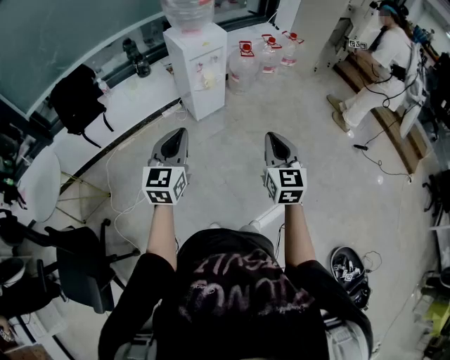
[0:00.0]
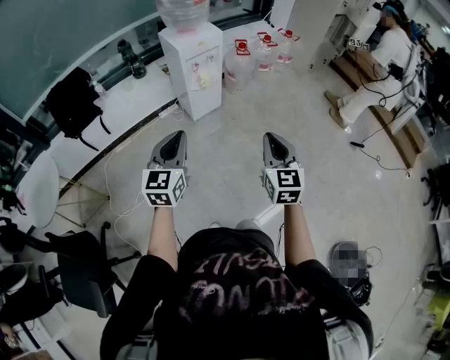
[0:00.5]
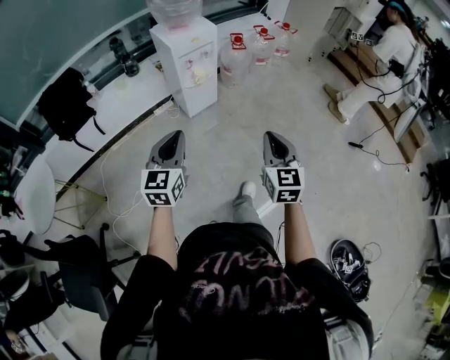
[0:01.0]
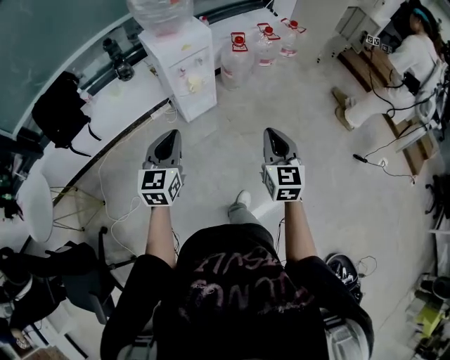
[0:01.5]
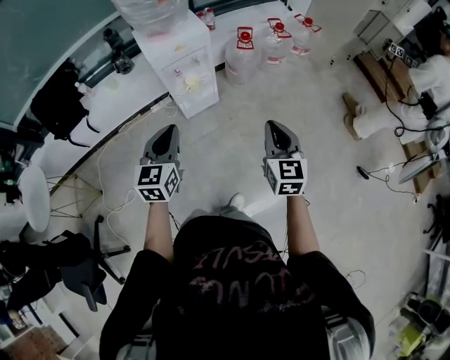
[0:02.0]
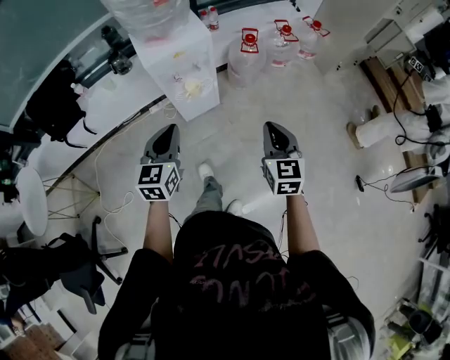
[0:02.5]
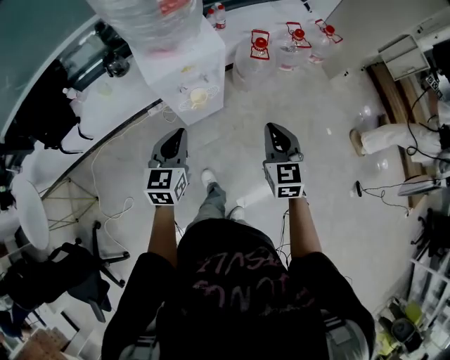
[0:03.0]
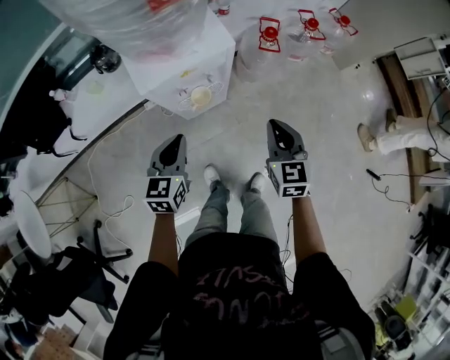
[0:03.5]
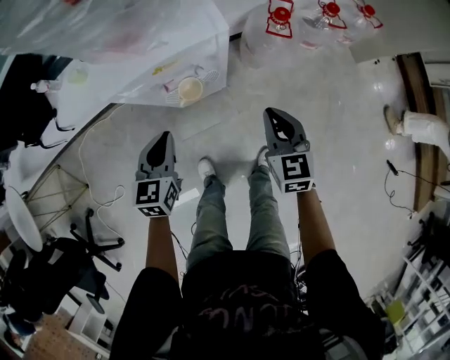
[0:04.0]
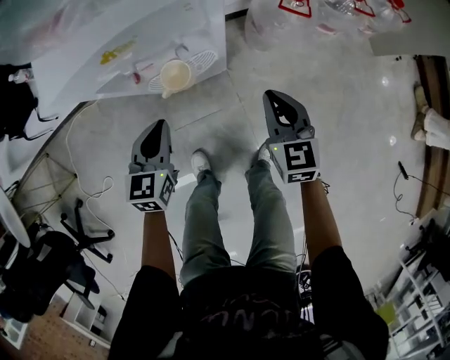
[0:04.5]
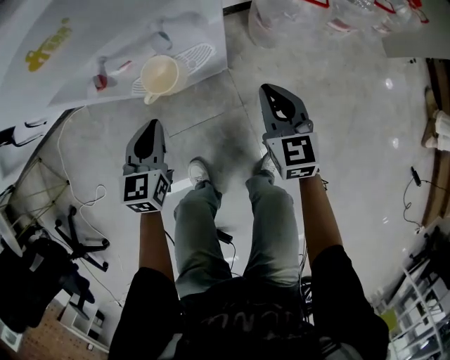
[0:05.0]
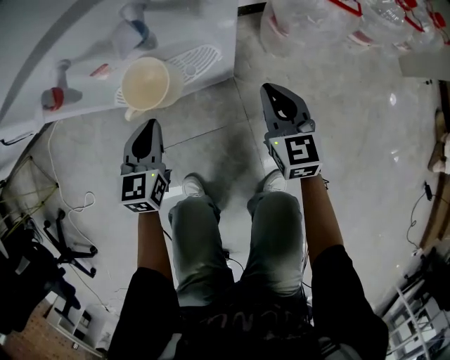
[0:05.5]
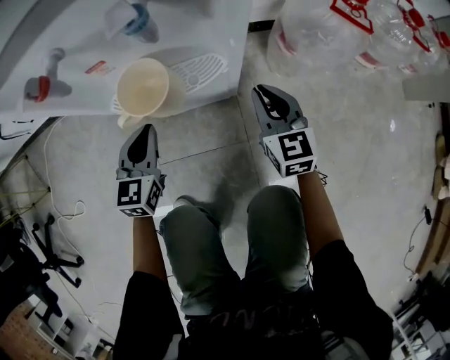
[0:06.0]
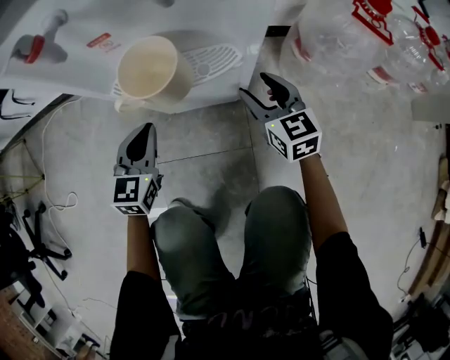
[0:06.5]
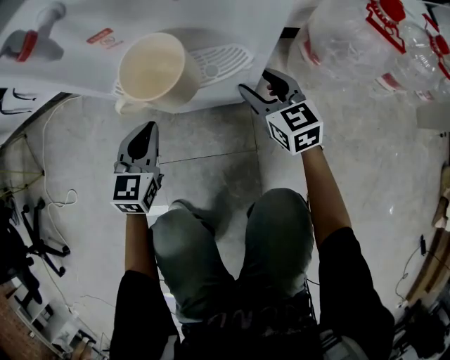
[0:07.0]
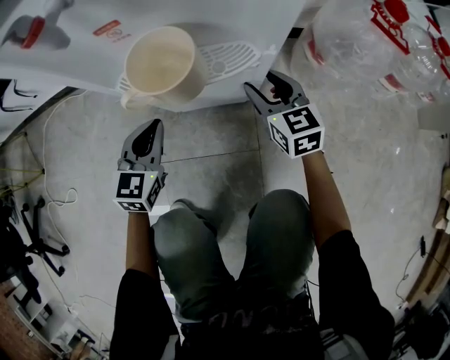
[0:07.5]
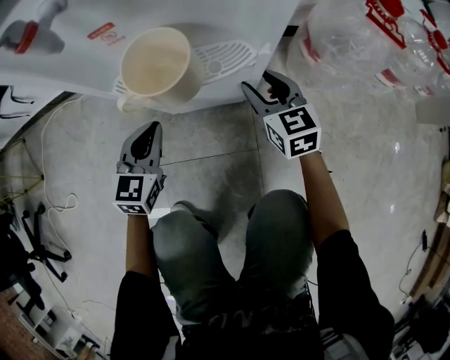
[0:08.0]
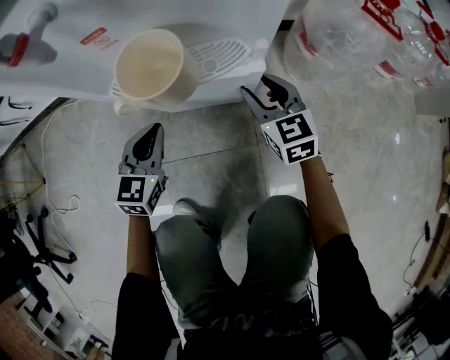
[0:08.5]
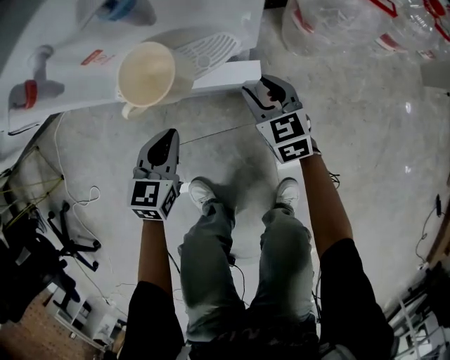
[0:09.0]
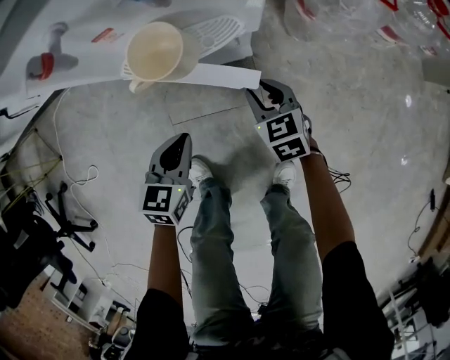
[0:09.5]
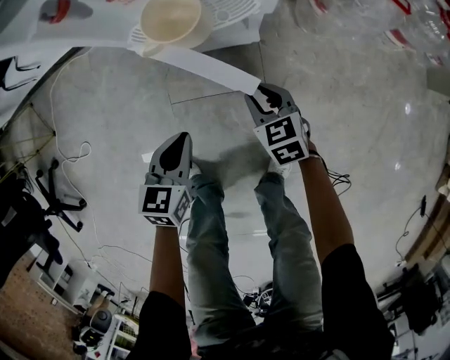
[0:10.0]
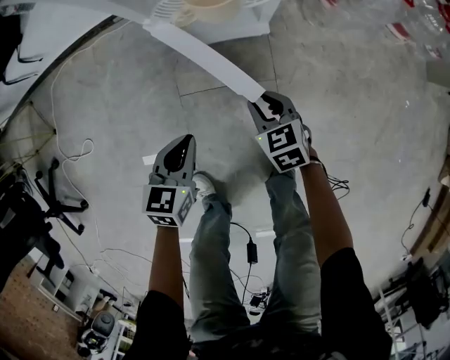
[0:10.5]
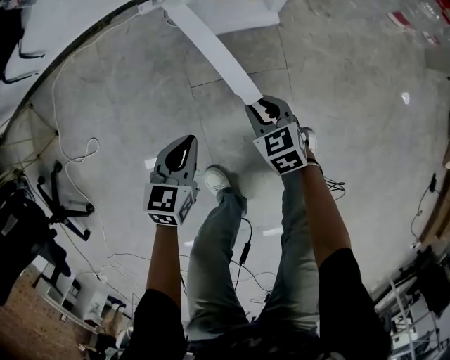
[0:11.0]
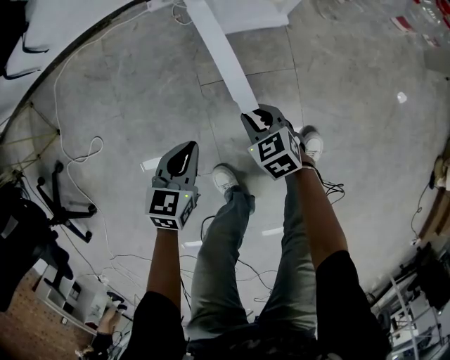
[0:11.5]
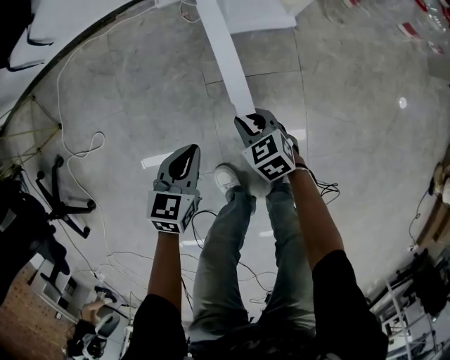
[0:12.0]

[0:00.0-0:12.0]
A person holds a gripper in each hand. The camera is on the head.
0:00.0 to 0:02.0: The grippers both shift forward by about 30 cm.
0:02.0 to 0:04.0: The two grippers go roughly 40 cm forward and downward. The right gripper swivels about 20 degrees.
0:04.0 to 0:06.0: Both grippers move downward, roughly 40 cm.
0:06.0 to 0:08.0: Both grippers move downward, approximately 5 cm. The right gripper opens up.
0:08.0 to 0:10.0: The right gripper goes approximately 15 cm backward, turns by about 20 degrees, and closes up. Meanwhile the left gripper goes approximately 20 cm backward and upward, and turns by approximately 20 degrees.
0:10.0 to 0:12.0: The grippers both shift to the left and backward by some 25 cm.

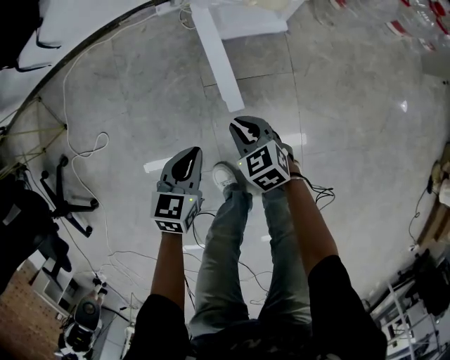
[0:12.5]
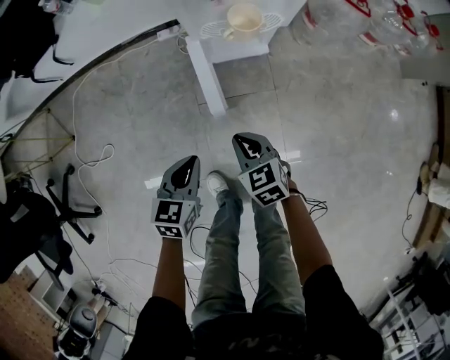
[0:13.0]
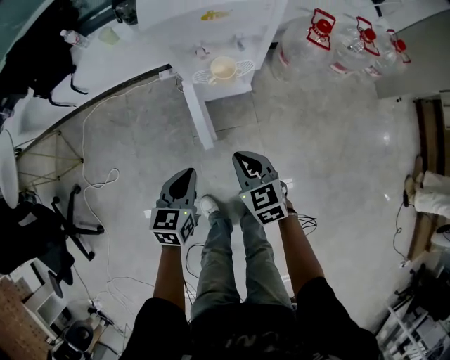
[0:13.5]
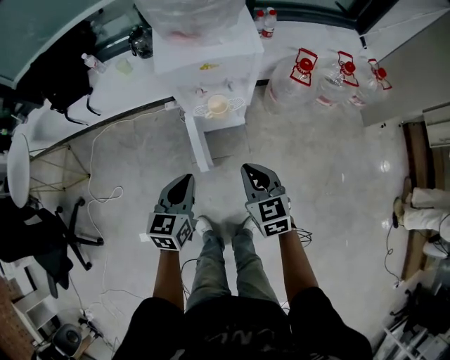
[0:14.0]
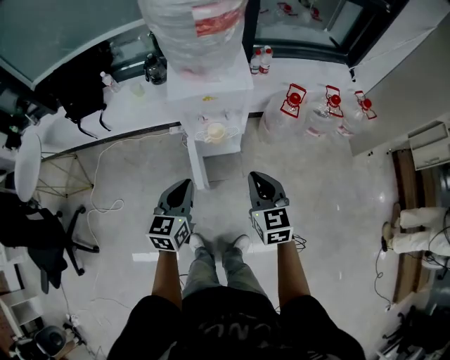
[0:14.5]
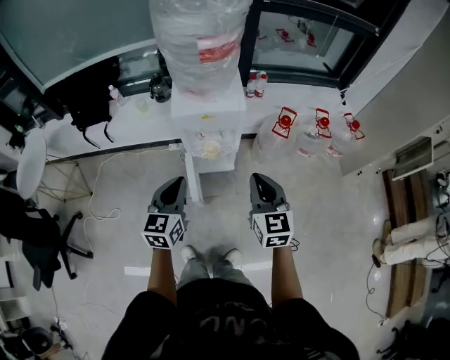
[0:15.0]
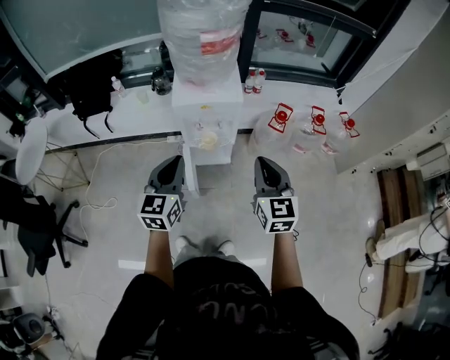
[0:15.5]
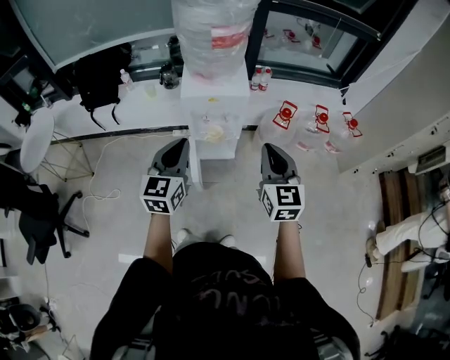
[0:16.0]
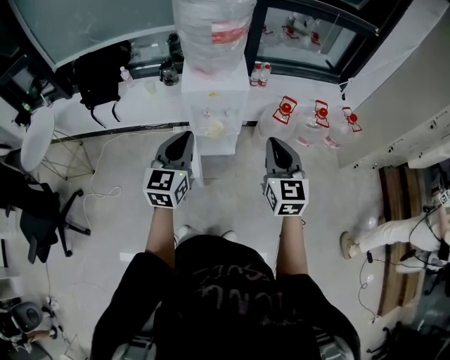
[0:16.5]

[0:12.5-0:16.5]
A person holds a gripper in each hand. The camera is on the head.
0:12.5 to 0:14.5: The right gripper goes roughly 60 cm upward and to the right, and changes its angle by roughly 30 degrees. The left gripper shifts some 50 cm upward, and swivels some 20 degrees.
0:14.5 to 0:16.5: The two grippers go about 20 cm upward.

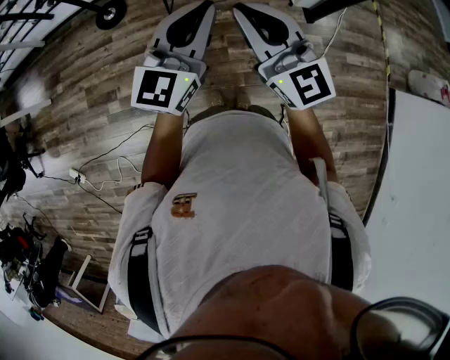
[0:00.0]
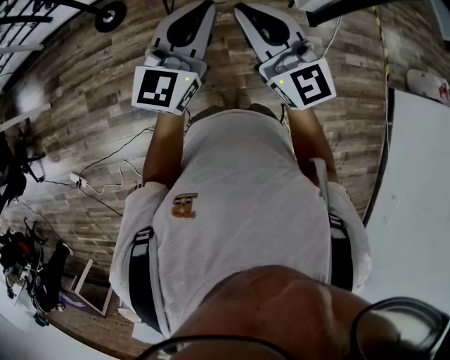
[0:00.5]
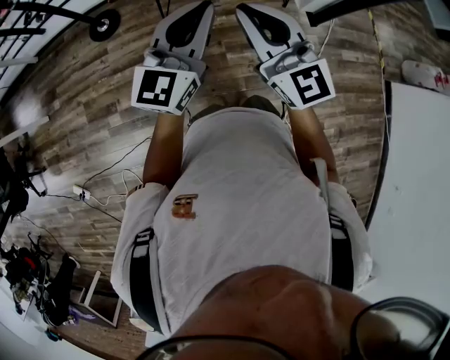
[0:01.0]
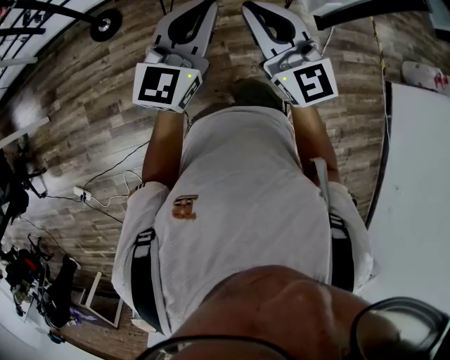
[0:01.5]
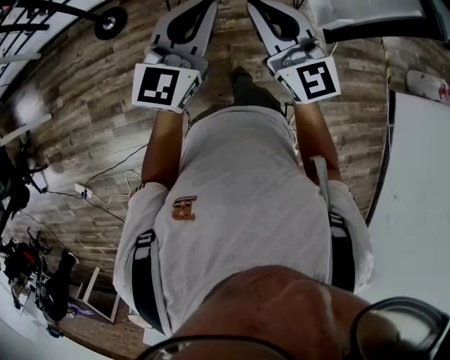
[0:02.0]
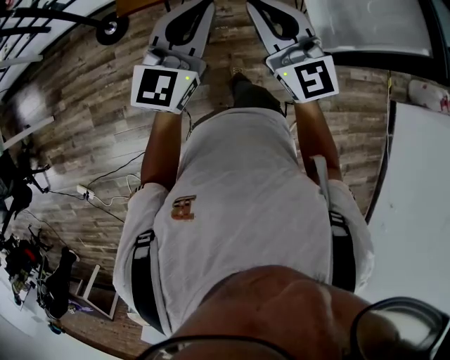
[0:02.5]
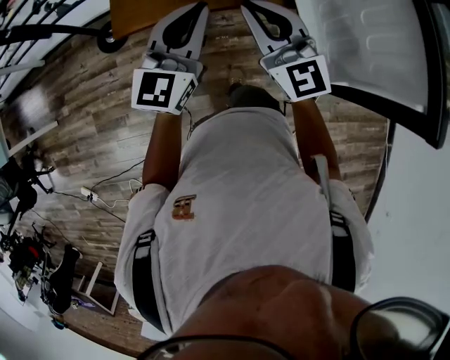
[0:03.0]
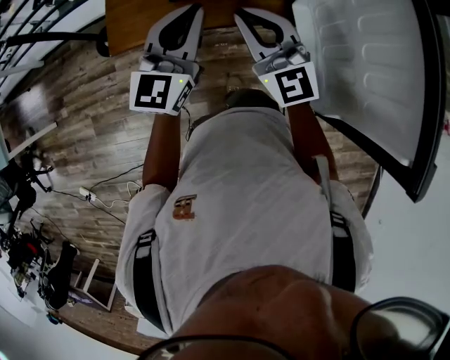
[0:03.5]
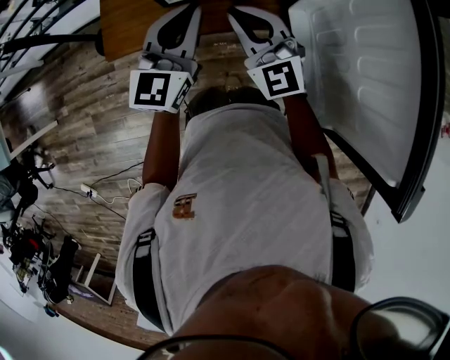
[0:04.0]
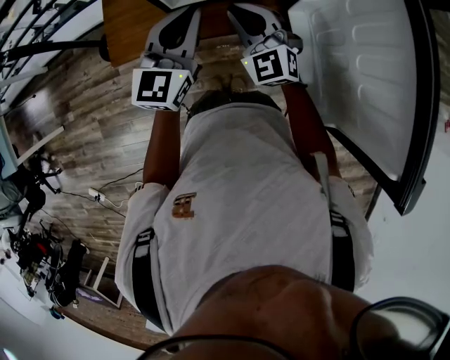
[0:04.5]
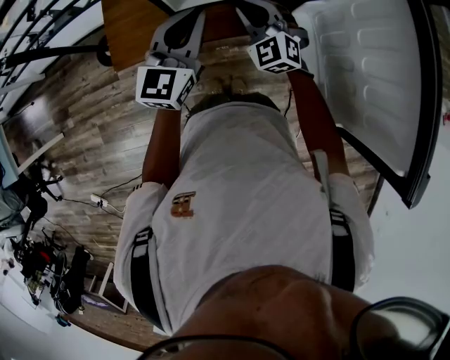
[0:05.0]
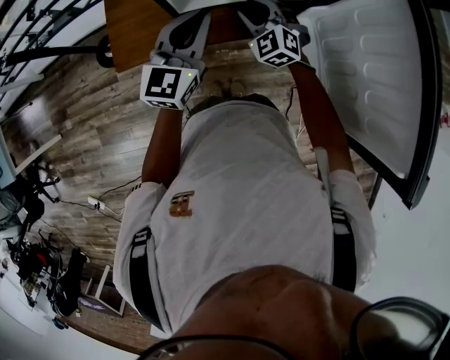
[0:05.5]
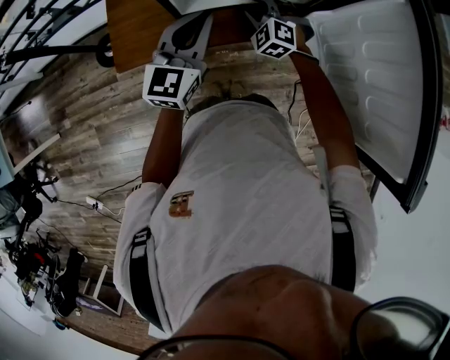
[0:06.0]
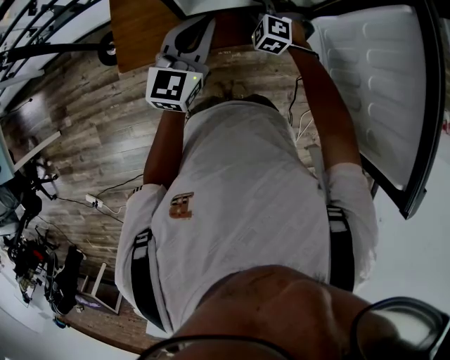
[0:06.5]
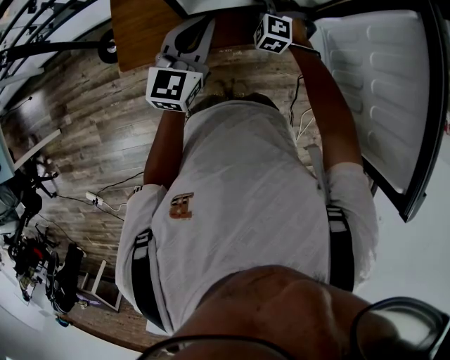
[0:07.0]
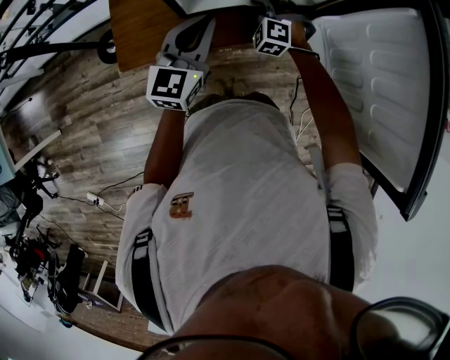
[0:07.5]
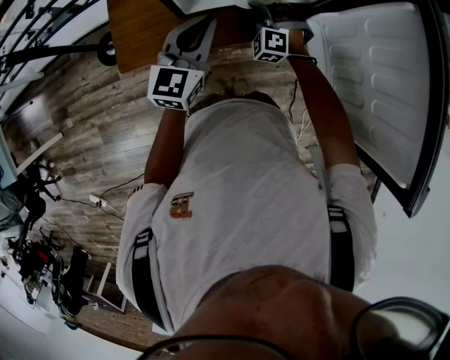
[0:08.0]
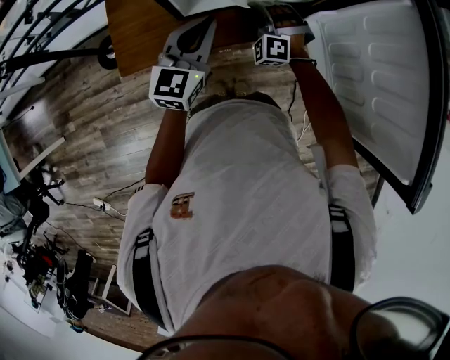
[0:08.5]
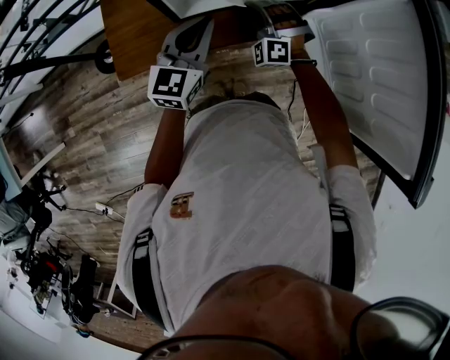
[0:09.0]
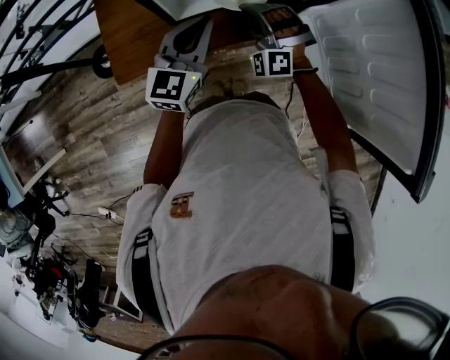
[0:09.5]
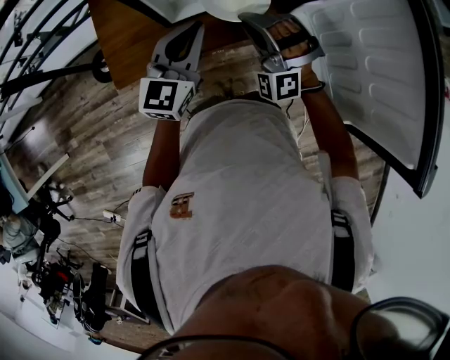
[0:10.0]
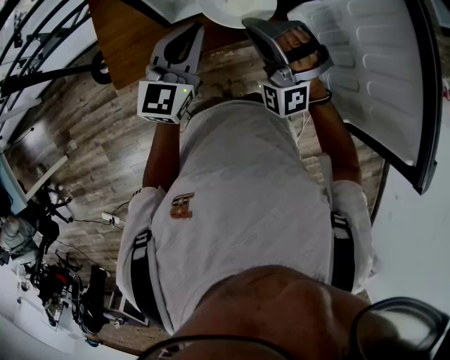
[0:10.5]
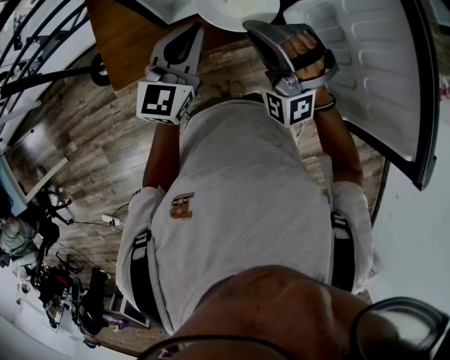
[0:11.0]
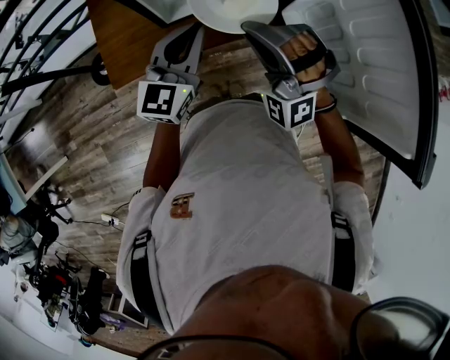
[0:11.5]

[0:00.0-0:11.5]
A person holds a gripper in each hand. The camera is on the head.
0:00.0 to 0:02.0: The grippers both shift forward and to the left by roughly 15 cm.
0:02.0 to 0:04.0: The pair of grippers is taken forward, about 40 cm.
0:04.0 to 0:06.0: The left gripper ends up approximately 5 cm from where it was. The right gripper is displaced downward and forward by approximately 20 cm, tilts its fingers about 30 degrees downward, and opens up.
0:06.0 to 0:07.5: There are only small adjustments of the grippers.
0:07.5 to 0:09.5: The right gripper travels upward by about 10 cm, and rotates approximately 20 degrees.
0:09.5 to 0:11.5: The right gripper travels upward and backward by approximately 15 cm.
